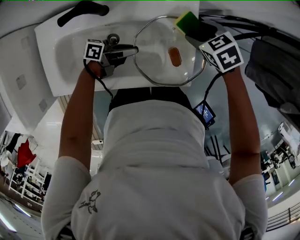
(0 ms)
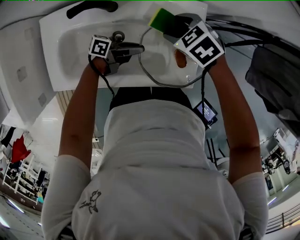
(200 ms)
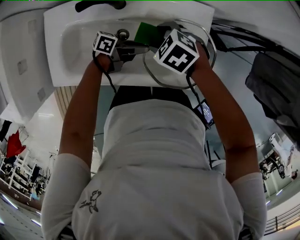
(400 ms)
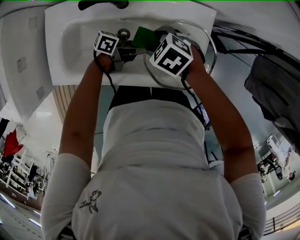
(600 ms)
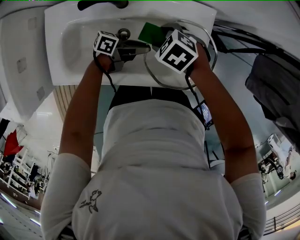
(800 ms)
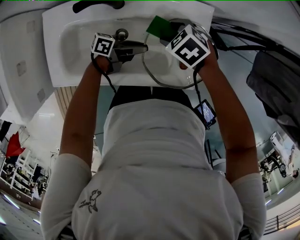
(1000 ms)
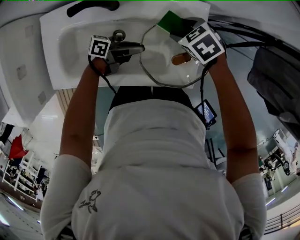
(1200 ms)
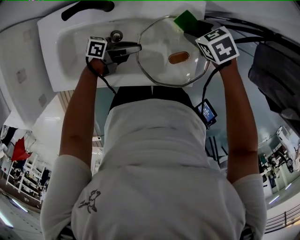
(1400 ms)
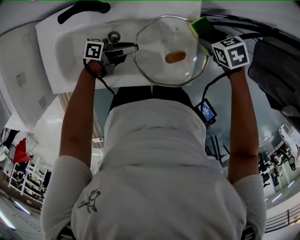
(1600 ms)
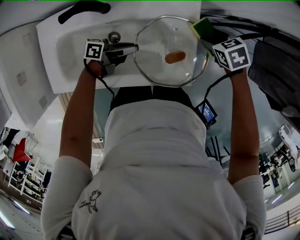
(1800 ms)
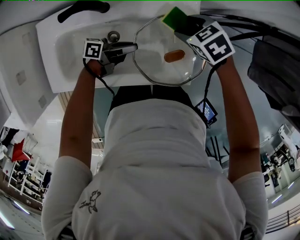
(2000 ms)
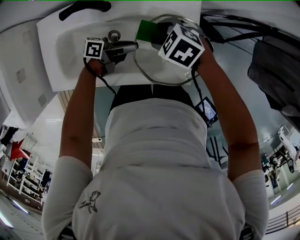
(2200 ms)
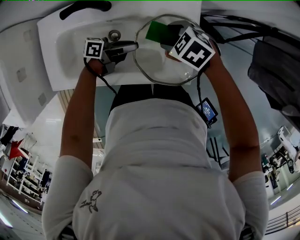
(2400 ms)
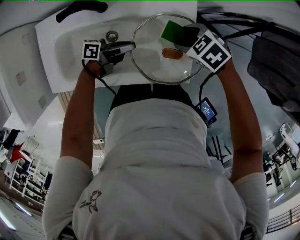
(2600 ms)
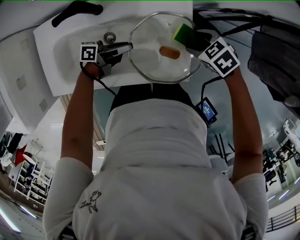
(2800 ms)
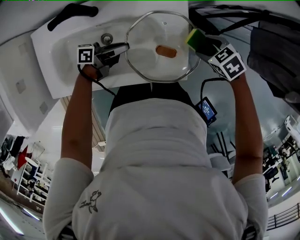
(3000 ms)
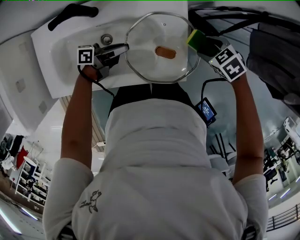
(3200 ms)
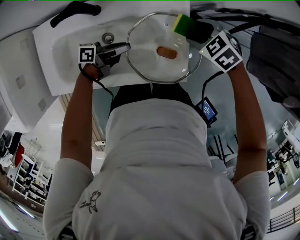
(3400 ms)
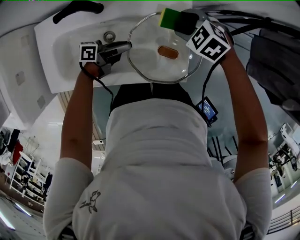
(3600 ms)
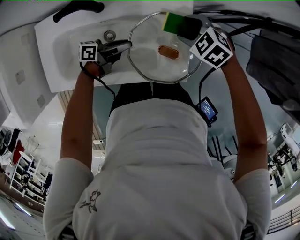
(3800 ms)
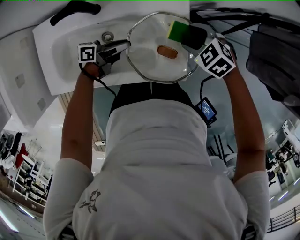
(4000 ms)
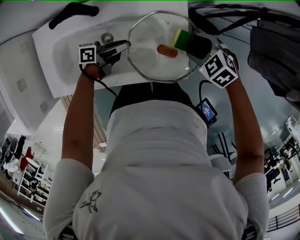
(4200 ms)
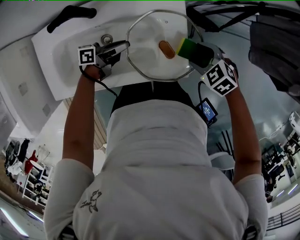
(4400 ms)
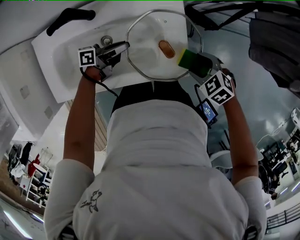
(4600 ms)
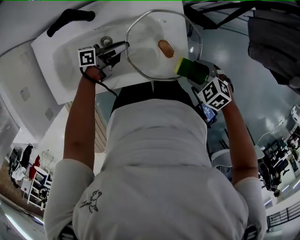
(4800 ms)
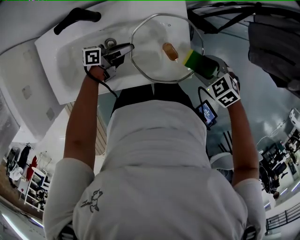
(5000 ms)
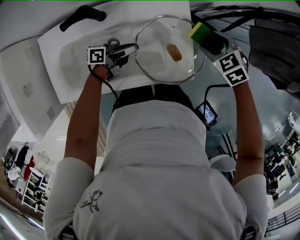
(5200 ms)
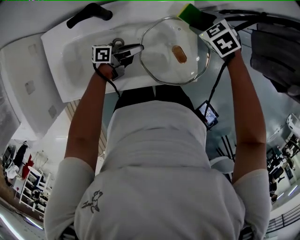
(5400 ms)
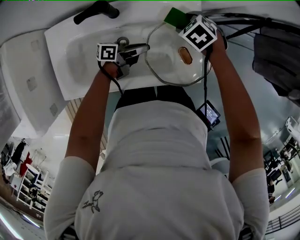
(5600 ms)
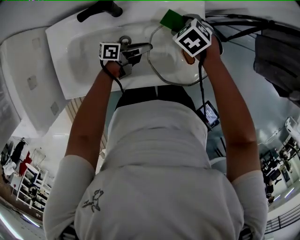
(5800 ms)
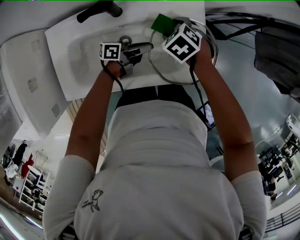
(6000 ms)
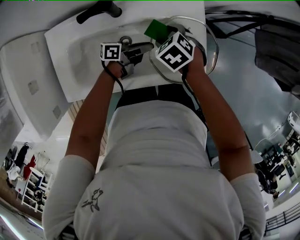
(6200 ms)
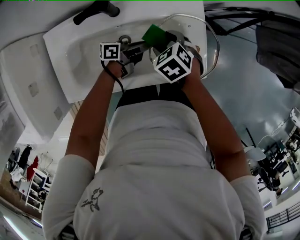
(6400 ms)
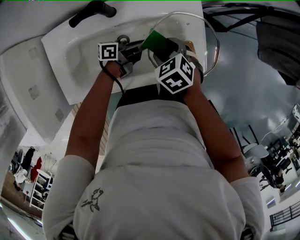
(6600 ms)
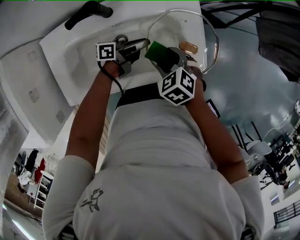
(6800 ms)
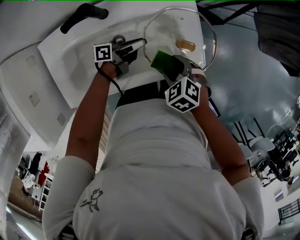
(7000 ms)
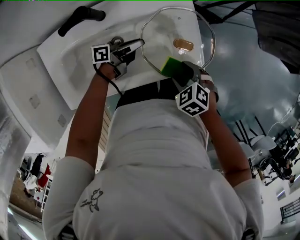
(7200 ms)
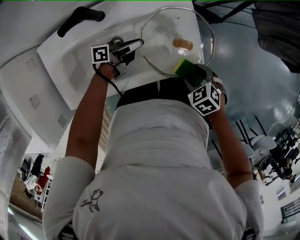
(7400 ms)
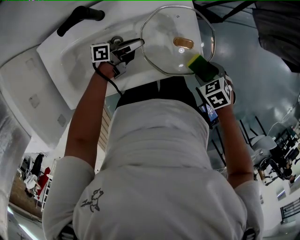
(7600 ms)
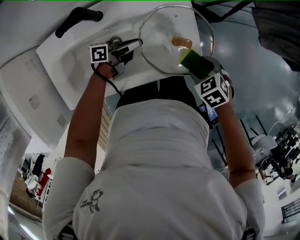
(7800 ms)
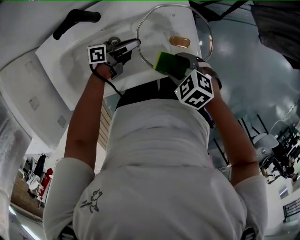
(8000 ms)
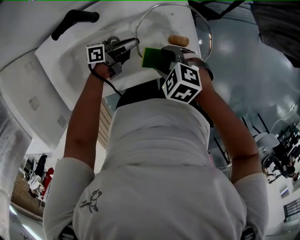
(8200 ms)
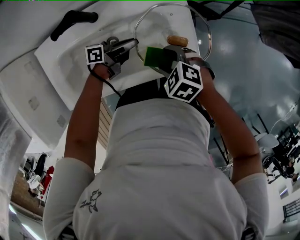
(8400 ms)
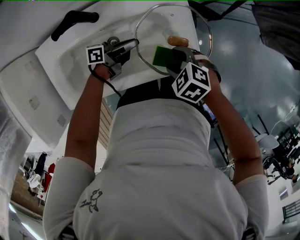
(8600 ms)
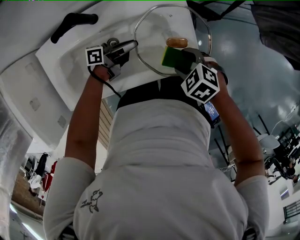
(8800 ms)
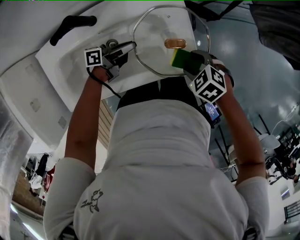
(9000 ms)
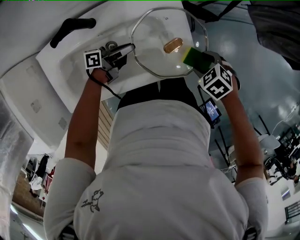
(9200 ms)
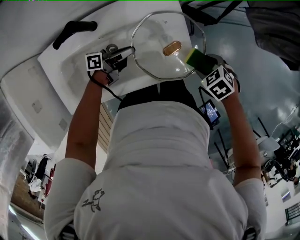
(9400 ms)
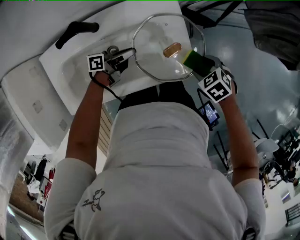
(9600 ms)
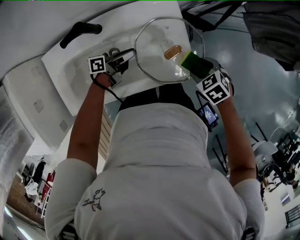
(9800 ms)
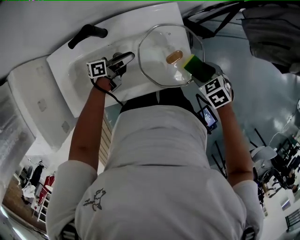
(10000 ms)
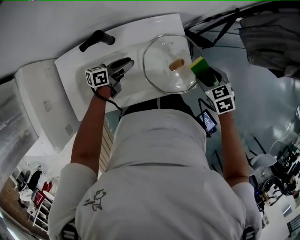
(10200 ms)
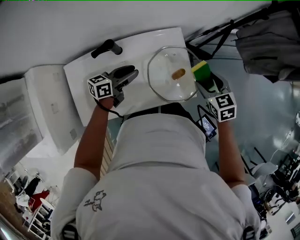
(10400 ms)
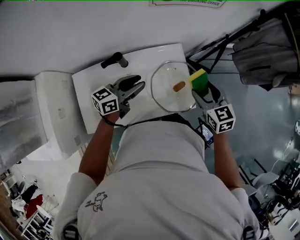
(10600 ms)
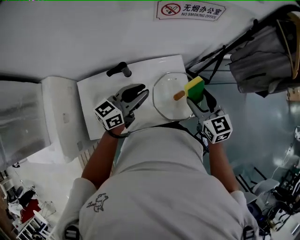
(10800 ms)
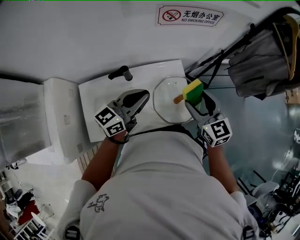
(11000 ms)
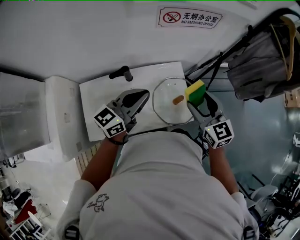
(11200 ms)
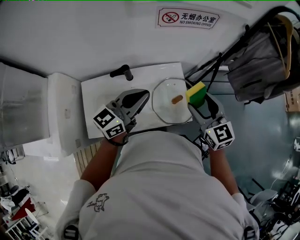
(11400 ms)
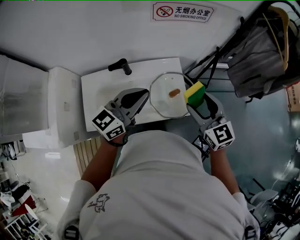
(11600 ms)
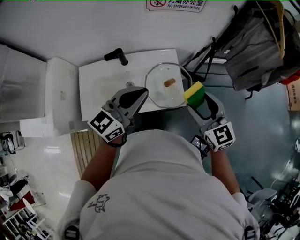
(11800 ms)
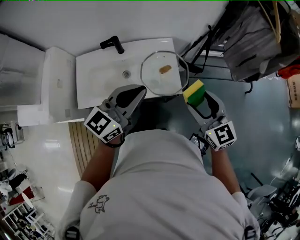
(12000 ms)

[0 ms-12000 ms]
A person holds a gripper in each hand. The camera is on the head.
4400 ms to 6000 ms: The right gripper changes place by roughly 20 cm.
6000 ms to 7600 ms: The right gripper shifts by approximately 25 cm, and turns by about 20 degrees.
9000 ms to 10400 ms: Both grippers travel together upward, approximately 15 cm. The right gripper swivels roughly 40 degrees. Meanwhile the left gripper swivels about 30 degrees.
10400 ms to 12000 ms: The left gripper is displaced upward, backward and to the right by roughly 40 cm, changes its angle by some 40 degrees, and closes its fingers; the right gripper moves upward and backward, roughly 25 cm, and tilts its fingers some 30 degrees upward.

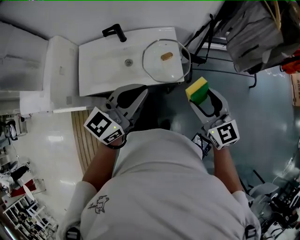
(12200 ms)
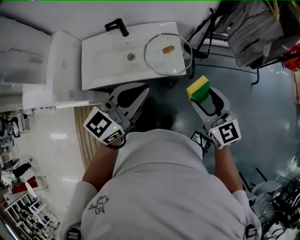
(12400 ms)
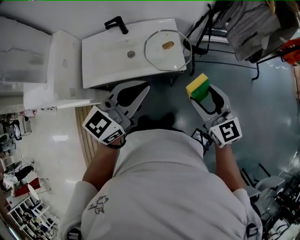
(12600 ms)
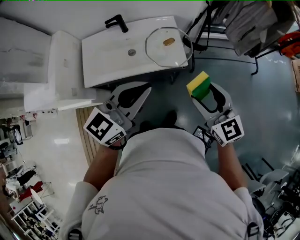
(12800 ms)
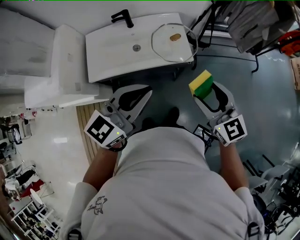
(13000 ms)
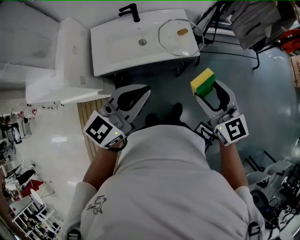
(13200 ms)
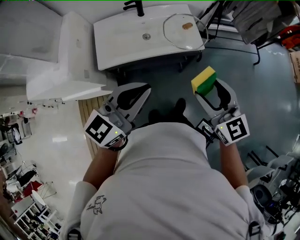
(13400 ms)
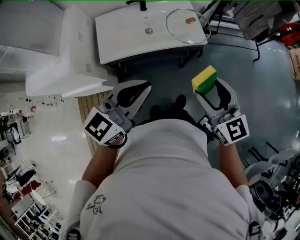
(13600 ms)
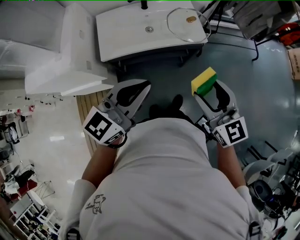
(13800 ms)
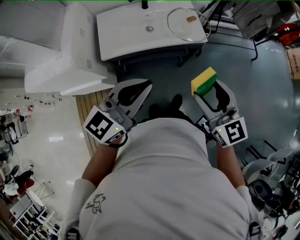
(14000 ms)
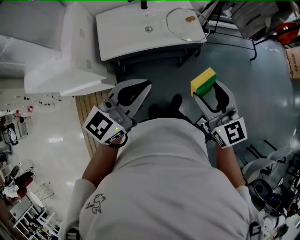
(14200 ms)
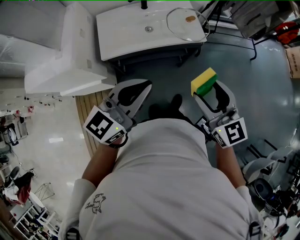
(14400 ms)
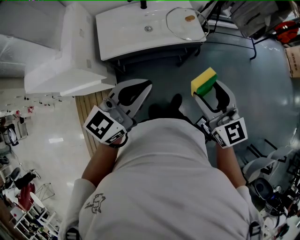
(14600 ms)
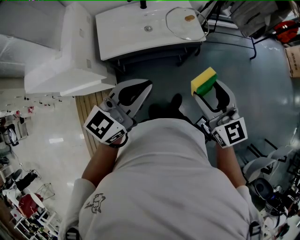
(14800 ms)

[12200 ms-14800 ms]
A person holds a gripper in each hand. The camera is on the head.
12200 ms to 13400 ms: The two grippers go some 25 cm backward and to the left.
13400 ms to 14800 ms: Both grippers travel together backward, roughly 10 cm.

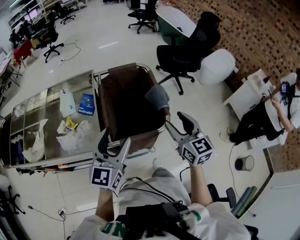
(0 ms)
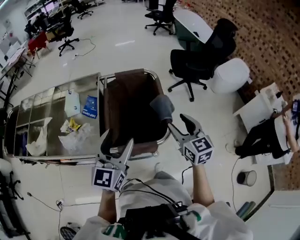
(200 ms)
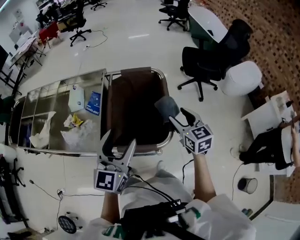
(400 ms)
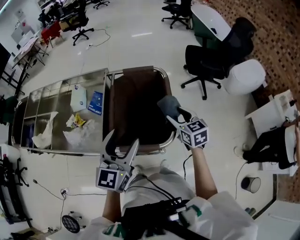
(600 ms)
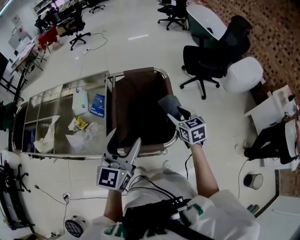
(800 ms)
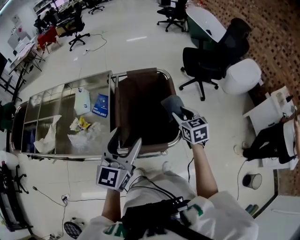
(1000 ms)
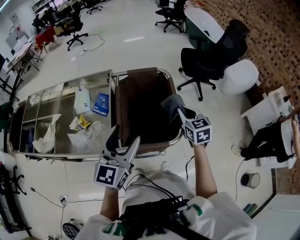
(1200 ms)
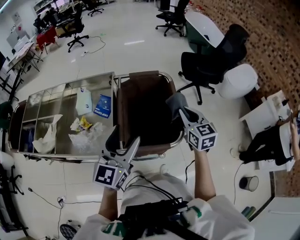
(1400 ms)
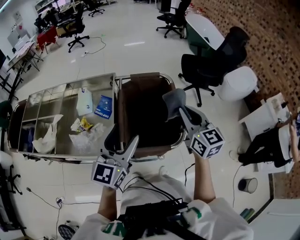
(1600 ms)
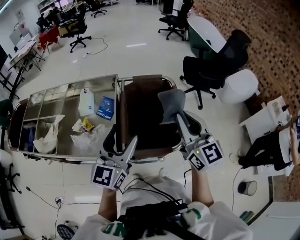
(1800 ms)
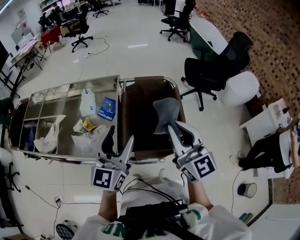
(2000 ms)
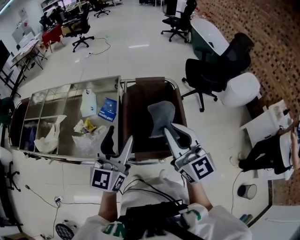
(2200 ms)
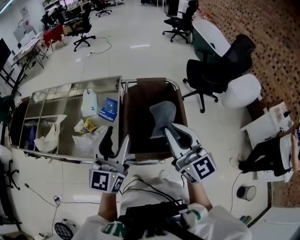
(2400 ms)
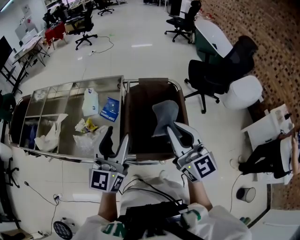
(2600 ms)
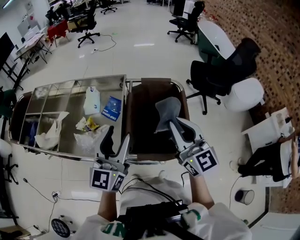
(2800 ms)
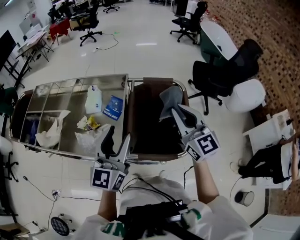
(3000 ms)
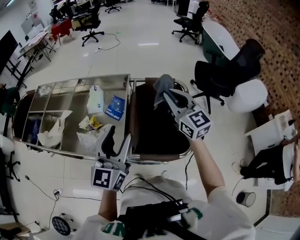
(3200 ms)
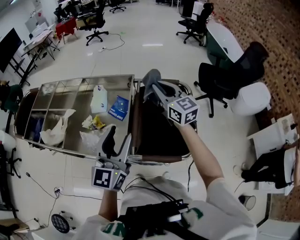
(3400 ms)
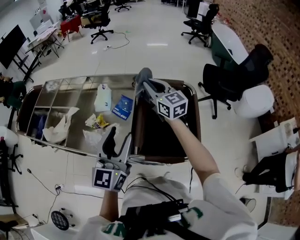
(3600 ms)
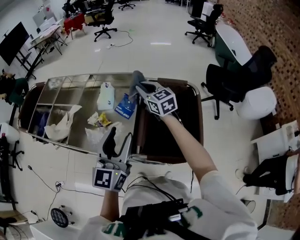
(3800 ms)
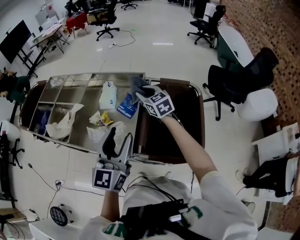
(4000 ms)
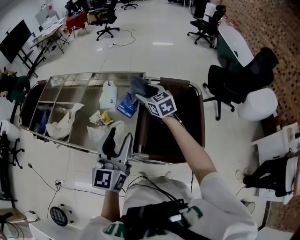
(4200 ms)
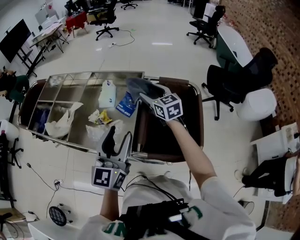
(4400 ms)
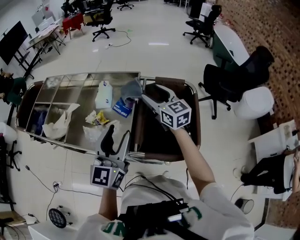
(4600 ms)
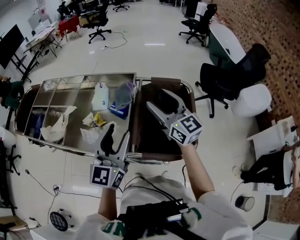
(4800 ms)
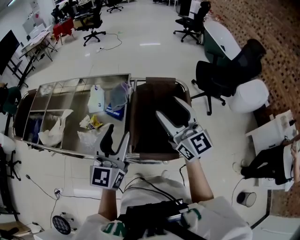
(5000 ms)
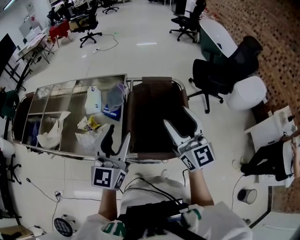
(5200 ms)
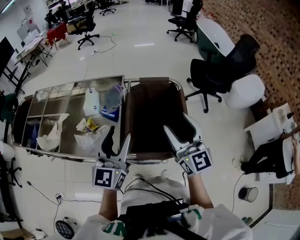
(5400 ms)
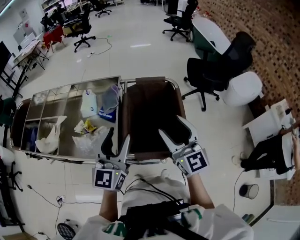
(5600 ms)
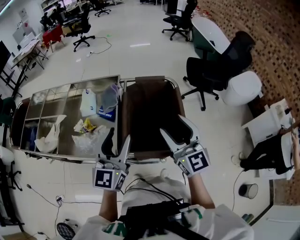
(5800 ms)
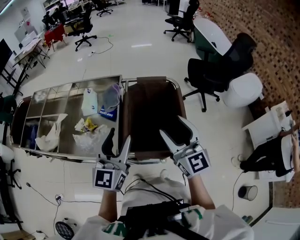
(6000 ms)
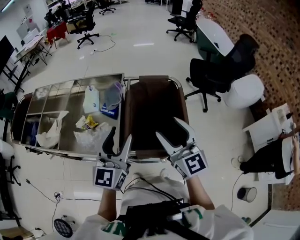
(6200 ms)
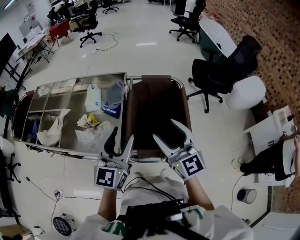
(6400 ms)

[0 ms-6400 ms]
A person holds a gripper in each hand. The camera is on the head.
0 ms to 1600 ms: The right gripper is displaced forward and upward by about 10 cm, and closes; the left gripper reaches roughly 10 cm to the right, then returns.
1600 ms to 3200 ms: The left gripper heads to the left, covering about 5 cm. The right gripper is displaced forward and to the left by some 15 cm, and turns by some 20 degrees.
3200 ms to 4800 ms: The right gripper is displaced to the left by some 5 cm, and opens its fingers.
4800 ms to 6400 ms: The right gripper is displaced backward by approximately 15 cm.

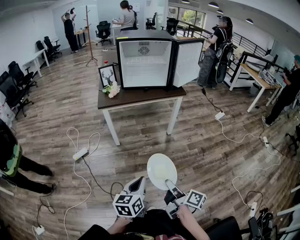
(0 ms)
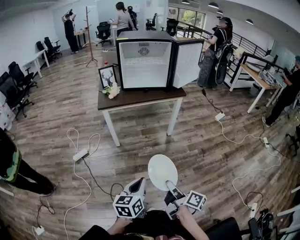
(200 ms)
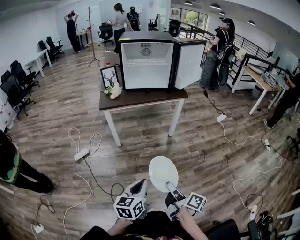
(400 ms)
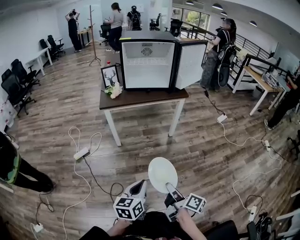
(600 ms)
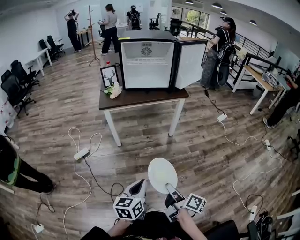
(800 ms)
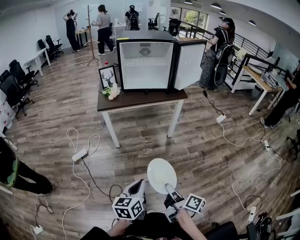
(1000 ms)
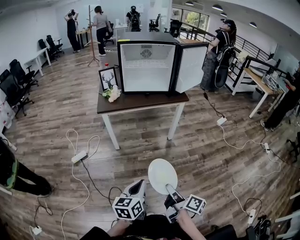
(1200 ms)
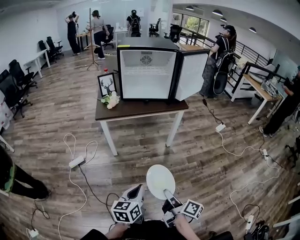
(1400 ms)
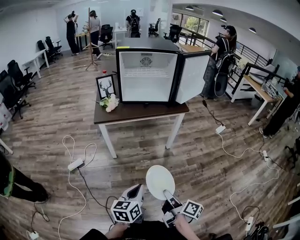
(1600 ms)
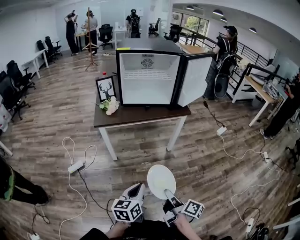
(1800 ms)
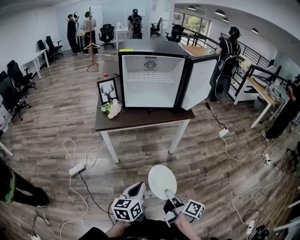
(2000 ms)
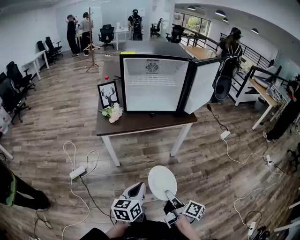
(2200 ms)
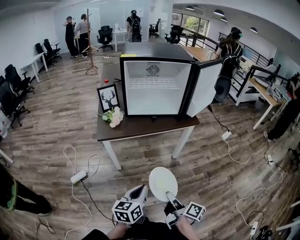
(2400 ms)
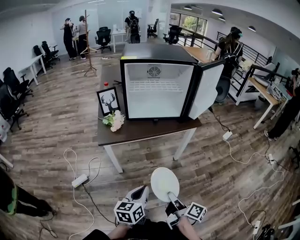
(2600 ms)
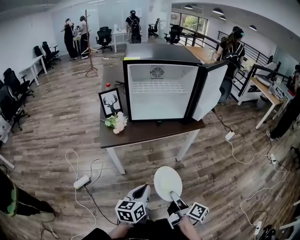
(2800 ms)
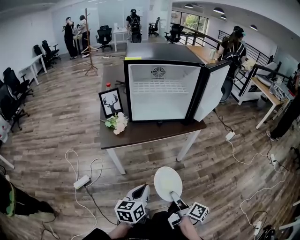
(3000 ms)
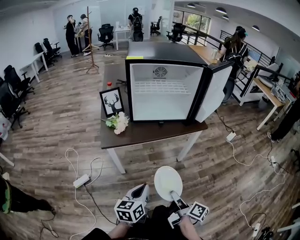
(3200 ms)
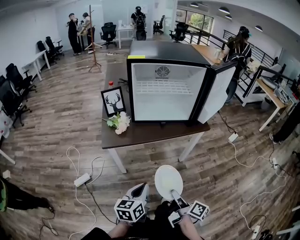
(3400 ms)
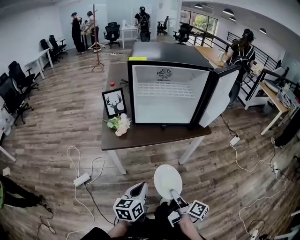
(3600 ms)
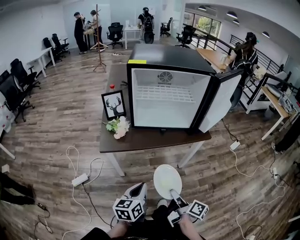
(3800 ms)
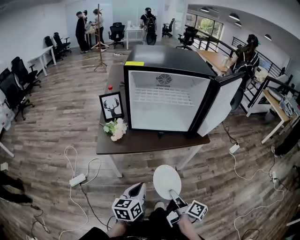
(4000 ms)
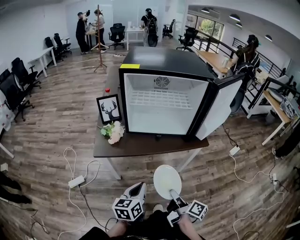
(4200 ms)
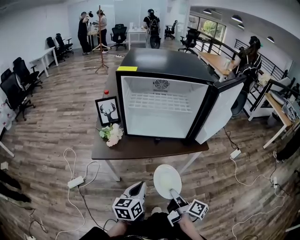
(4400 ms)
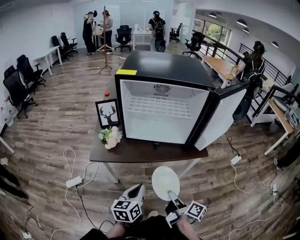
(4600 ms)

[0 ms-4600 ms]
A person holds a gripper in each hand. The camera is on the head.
0 ms to 1600 ms: The two grippers go about 10 cm forward.
1600 ms to 3000 ms: The right gripper shifts roughly 20 cm forward; the left gripper moves forward and to the left, approximately 20 cm.
3000 ms to 4600 ms: Both grippers travel together forward and to the right, about 20 cm.
